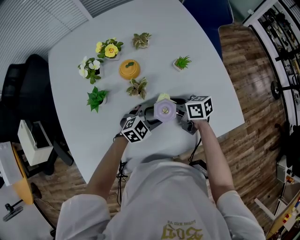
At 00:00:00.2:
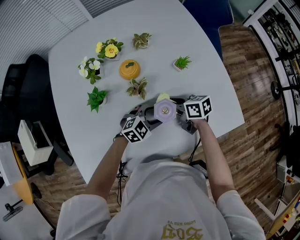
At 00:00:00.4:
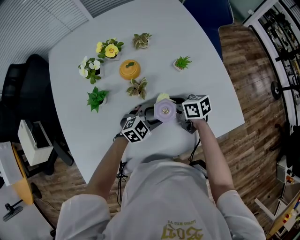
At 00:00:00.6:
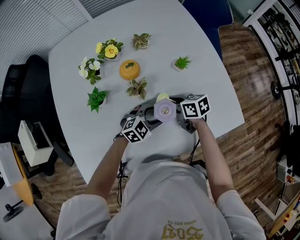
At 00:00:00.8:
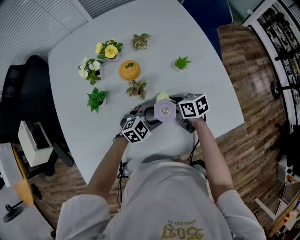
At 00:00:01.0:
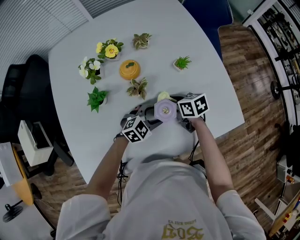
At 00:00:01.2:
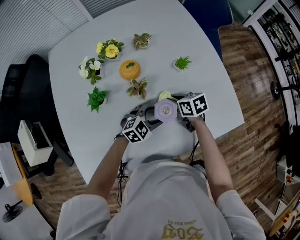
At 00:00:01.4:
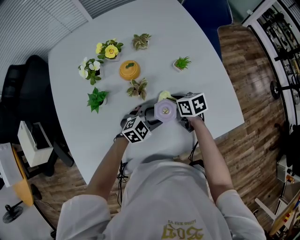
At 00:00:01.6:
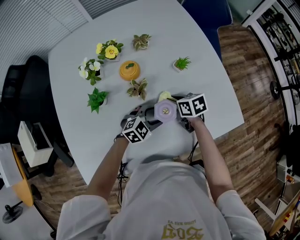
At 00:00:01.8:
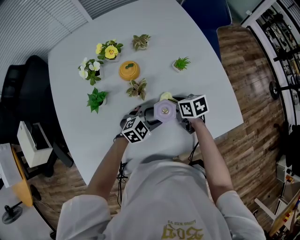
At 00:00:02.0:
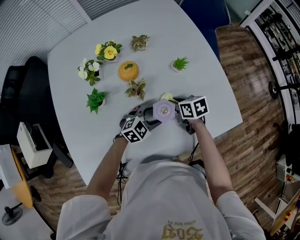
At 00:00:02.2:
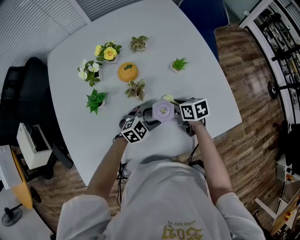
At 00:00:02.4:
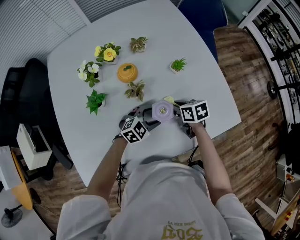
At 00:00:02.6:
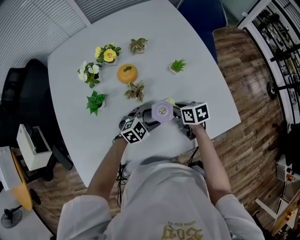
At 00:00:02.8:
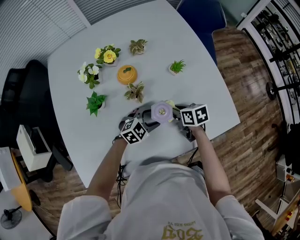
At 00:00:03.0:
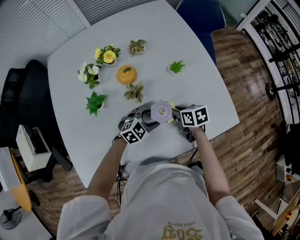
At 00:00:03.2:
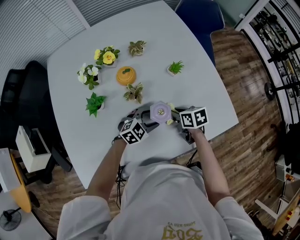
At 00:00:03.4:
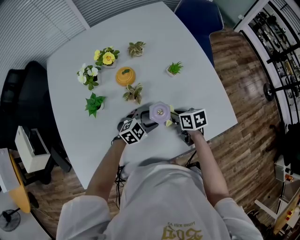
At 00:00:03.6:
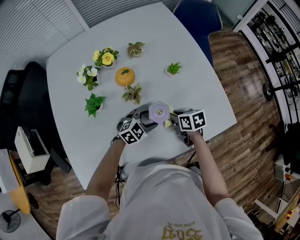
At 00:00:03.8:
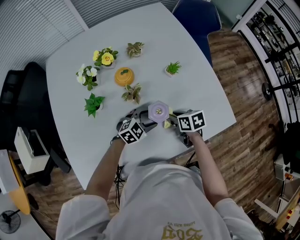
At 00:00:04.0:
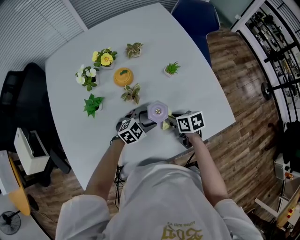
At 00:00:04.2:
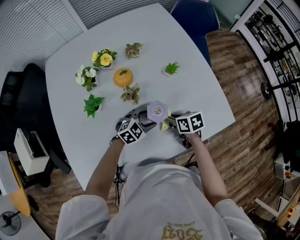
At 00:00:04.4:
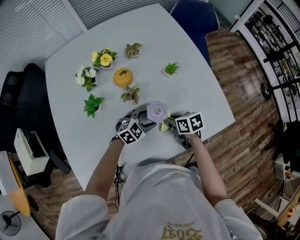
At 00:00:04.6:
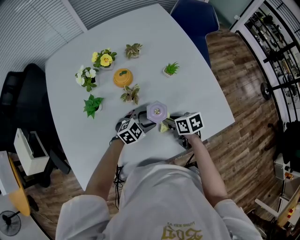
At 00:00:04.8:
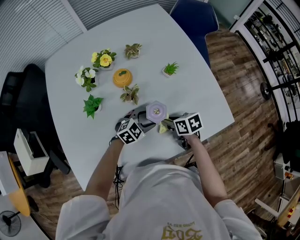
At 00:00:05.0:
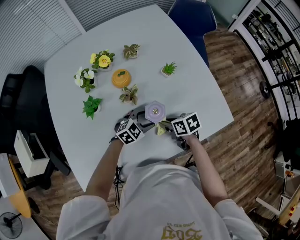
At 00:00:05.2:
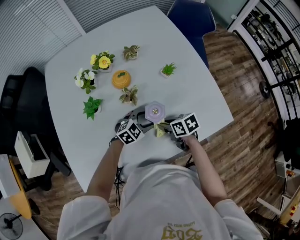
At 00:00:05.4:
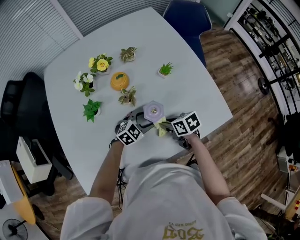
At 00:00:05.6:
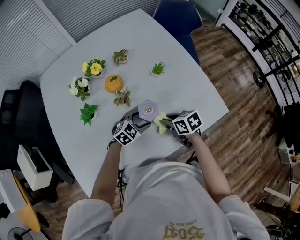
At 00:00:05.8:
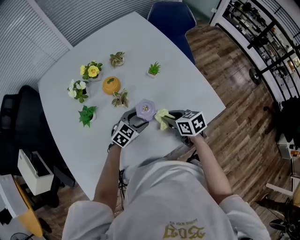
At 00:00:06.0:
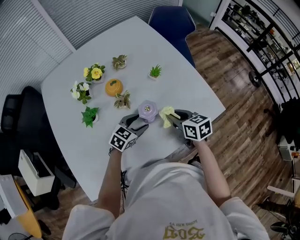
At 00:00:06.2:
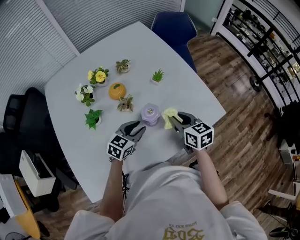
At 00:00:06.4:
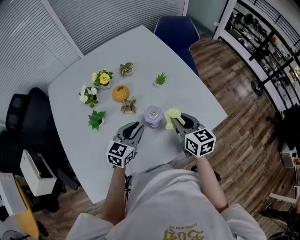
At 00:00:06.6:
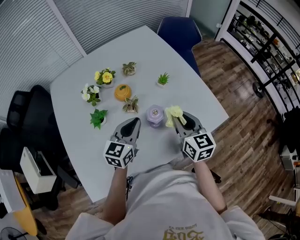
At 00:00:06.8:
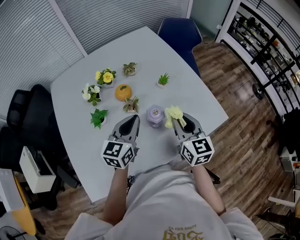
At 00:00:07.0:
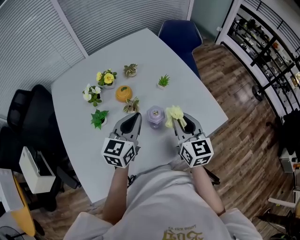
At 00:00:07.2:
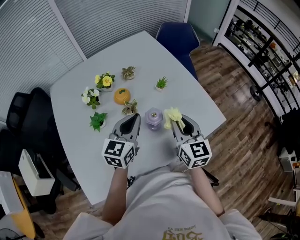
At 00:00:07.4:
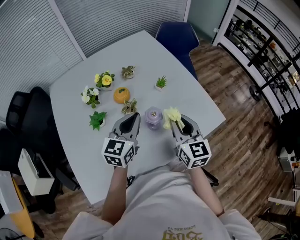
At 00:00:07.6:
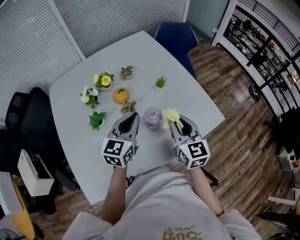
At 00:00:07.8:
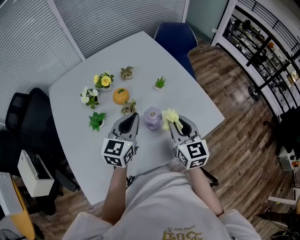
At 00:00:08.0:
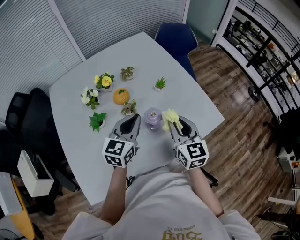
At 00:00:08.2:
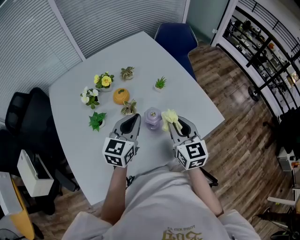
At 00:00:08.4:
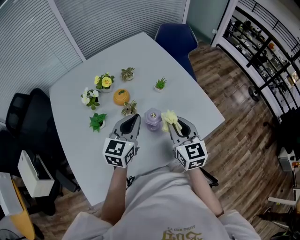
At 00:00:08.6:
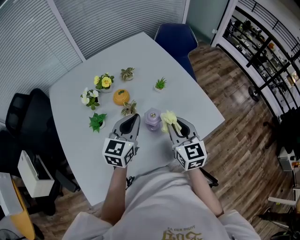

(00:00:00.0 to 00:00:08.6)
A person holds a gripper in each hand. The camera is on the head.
00:00:00.0 - 00:00:01.4: The right gripper swivels some 20 degrees.
00:00:01.4 - 00:00:02.8: There are only small adjustments of the grippers.
00:00:02.8 - 00:00:04.4: The grippers stay close to where they were, moving slightly.
00:00:04.4 - 00:00:05.8: The right gripper shifts about 5 cm upward.
00:00:05.8 - 00:00:07.2: Both grippers travel together upward, some 20 cm. The right gripper turns by about 50 degrees. Meanwhile the left gripper turns by some 40 degrees, and closes its fingers.
00:00:07.2 - 00:00:08.6: The grippers make only small movements.

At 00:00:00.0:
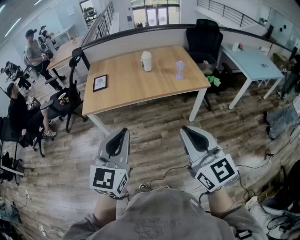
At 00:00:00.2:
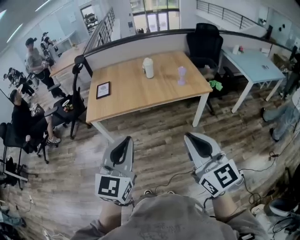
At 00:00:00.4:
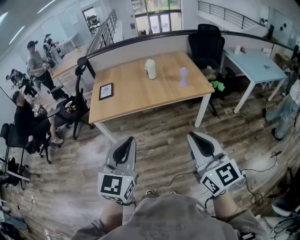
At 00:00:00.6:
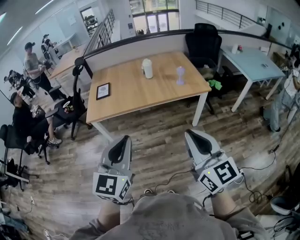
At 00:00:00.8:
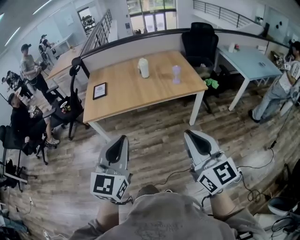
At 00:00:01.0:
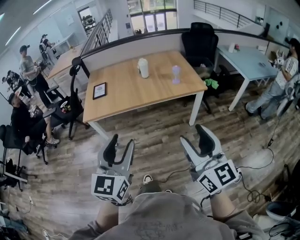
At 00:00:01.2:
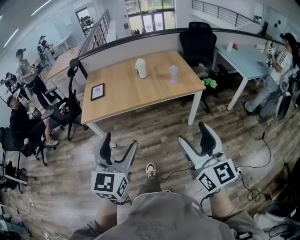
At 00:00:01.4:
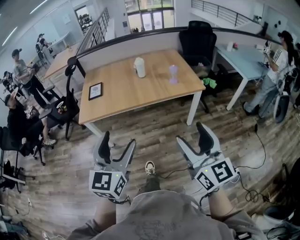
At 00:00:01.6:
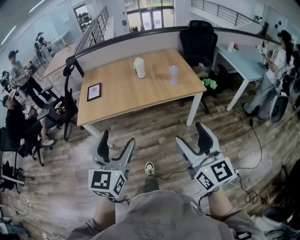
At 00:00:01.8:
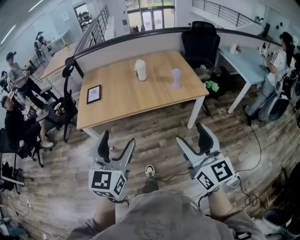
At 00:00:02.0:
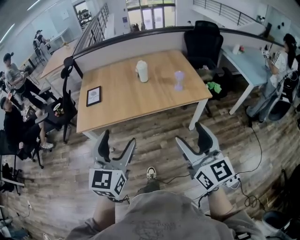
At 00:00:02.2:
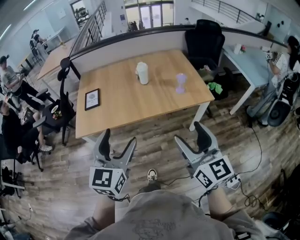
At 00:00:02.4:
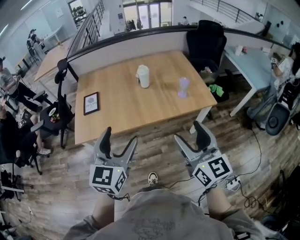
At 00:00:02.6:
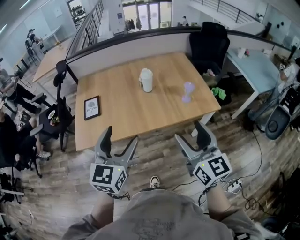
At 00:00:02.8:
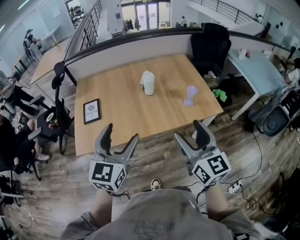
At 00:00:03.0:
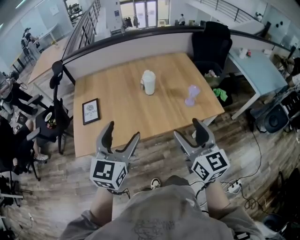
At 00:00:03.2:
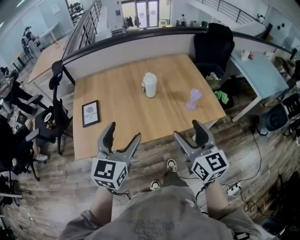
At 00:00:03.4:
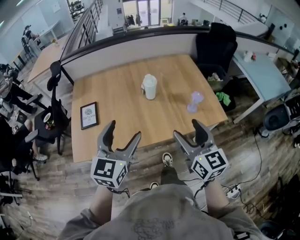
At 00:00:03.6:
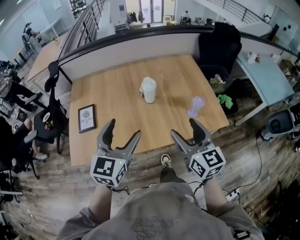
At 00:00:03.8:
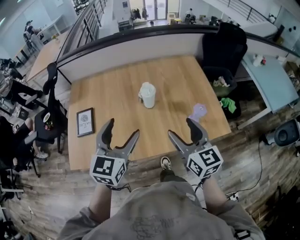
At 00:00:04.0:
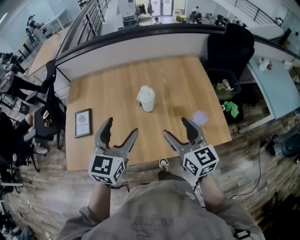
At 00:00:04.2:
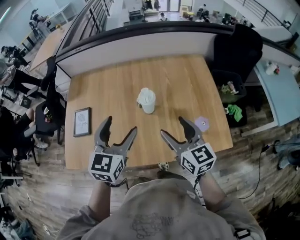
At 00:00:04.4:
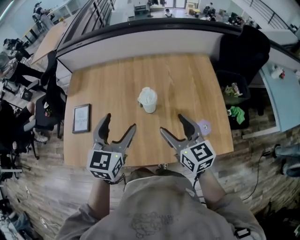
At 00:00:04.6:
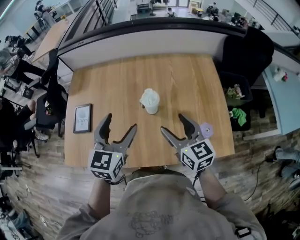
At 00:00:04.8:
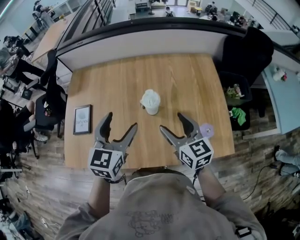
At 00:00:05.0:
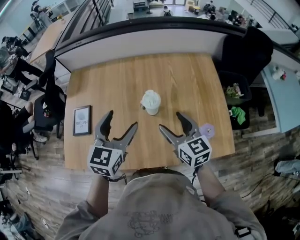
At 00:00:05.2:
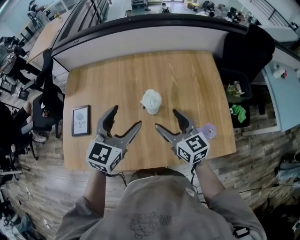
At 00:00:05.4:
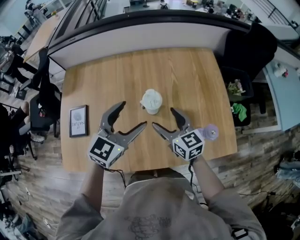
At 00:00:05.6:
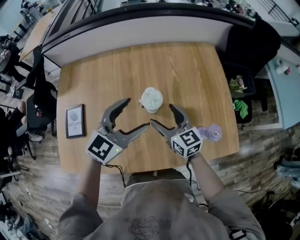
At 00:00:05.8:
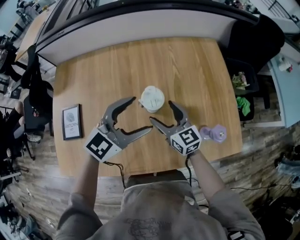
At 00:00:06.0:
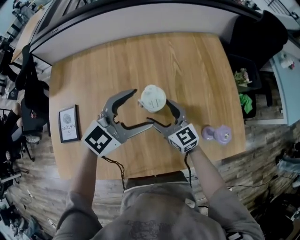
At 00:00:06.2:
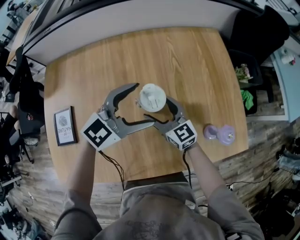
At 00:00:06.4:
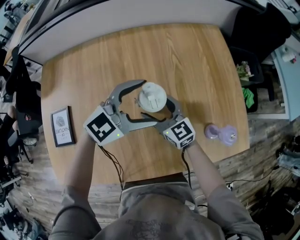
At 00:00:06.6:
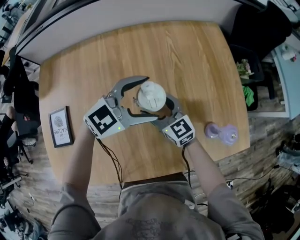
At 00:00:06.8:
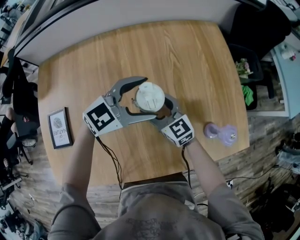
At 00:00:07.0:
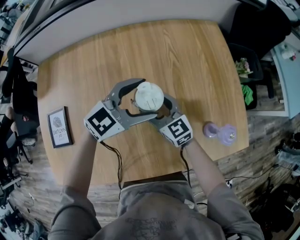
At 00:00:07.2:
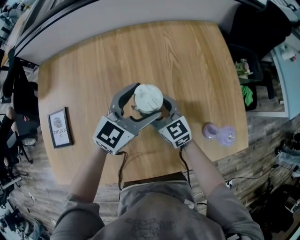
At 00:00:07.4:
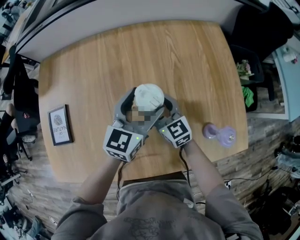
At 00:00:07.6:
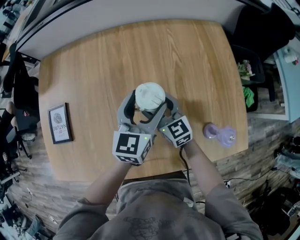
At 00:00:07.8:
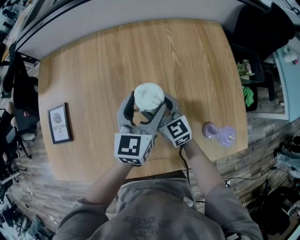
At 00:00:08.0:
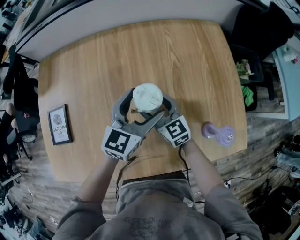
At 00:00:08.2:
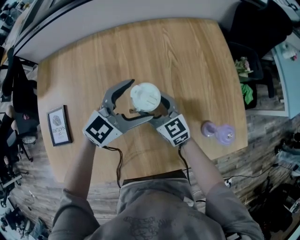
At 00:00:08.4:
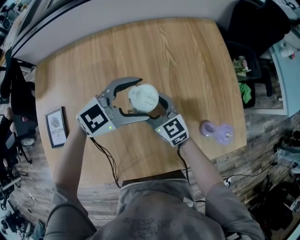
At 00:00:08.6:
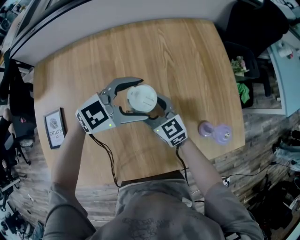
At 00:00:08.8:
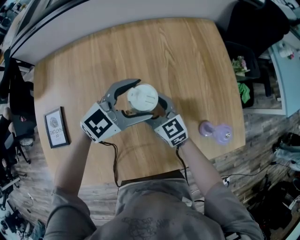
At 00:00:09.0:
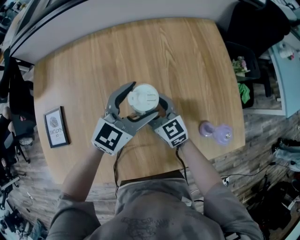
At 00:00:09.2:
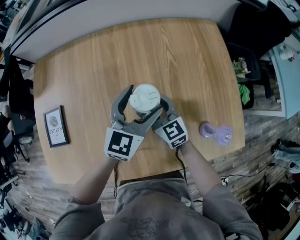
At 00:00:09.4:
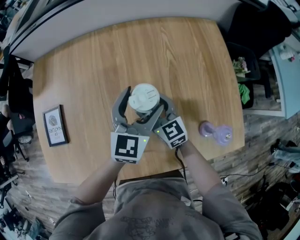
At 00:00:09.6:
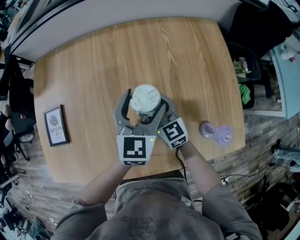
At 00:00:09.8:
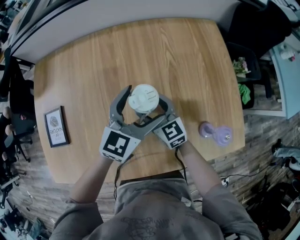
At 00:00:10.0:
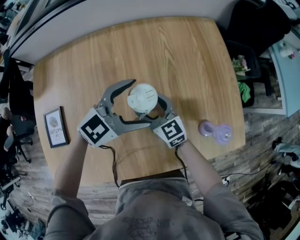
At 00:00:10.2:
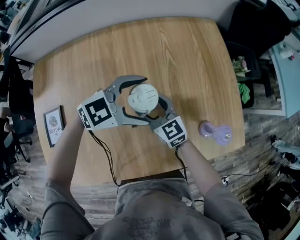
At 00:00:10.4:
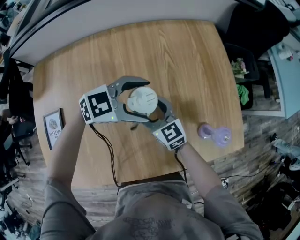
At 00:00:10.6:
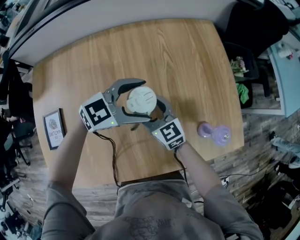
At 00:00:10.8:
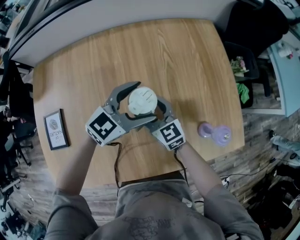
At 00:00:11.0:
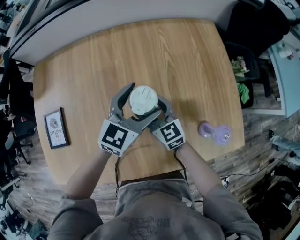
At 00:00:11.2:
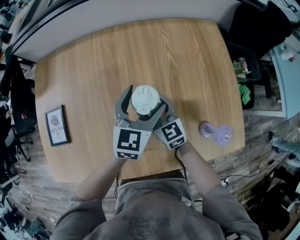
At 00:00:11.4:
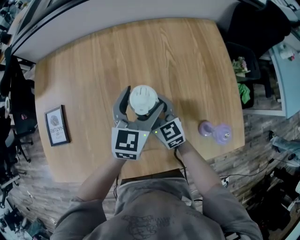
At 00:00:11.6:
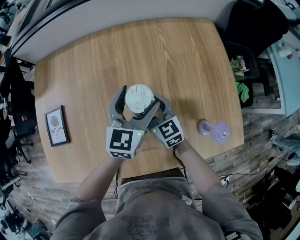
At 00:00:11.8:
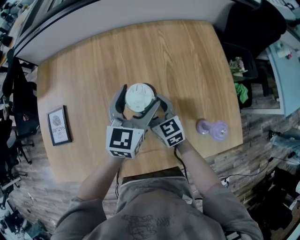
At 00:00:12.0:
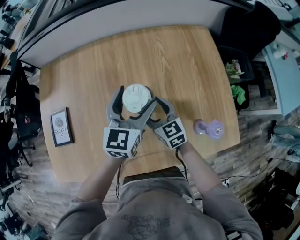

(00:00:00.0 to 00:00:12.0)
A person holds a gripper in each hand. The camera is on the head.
00:00:00.0 - 00:00:01.6: The left gripper heads forward, covering approximately 5 cm, and opens up. Meanwhile the right gripper goes some 5 cm to the right, and opens its fingers.
00:00:01.6 - 00:00:03.0: Both grippers travel together forward, about 35 cm.
00:00:03.0 - 00:00:04.4: The two grippers go roughly 30 cm forward. The right gripper swivels roughly 20 degrees.
00:00:04.4 - 00:00:06.0: The left gripper travels forward and downward by roughly 15 cm, and turns by some 40 degrees. The right gripper moves downward, forward and to the left, roughly 25 cm.
00:00:06.0 - 00:00:07.6: The right gripper ends up roughly 5 cm from where it was; the left gripper is displaced downward and forward by some 10 cm, and swivels approximately 40 degrees.
00:00:07.6 - 00:00:09.0: The left gripper turns by roughly 30 degrees.
00:00:09.0 - 00:00:10.4: The left gripper rotates approximately 40 degrees.
00:00:10.4 - 00:00:12.0: The left gripper goes some 5 cm upward, and turns by roughly 70 degrees.

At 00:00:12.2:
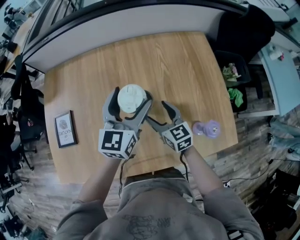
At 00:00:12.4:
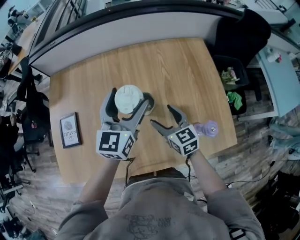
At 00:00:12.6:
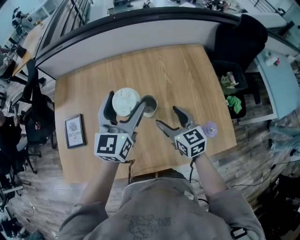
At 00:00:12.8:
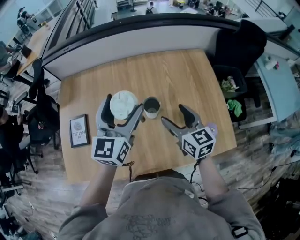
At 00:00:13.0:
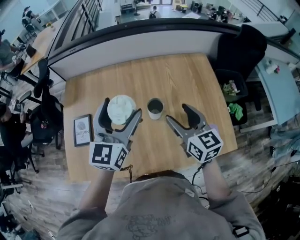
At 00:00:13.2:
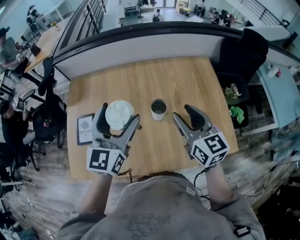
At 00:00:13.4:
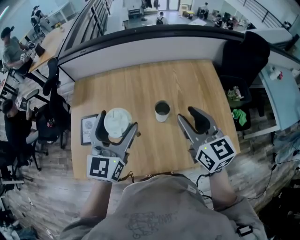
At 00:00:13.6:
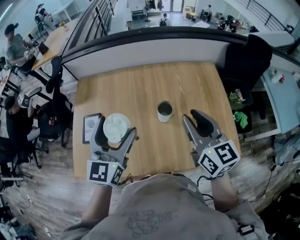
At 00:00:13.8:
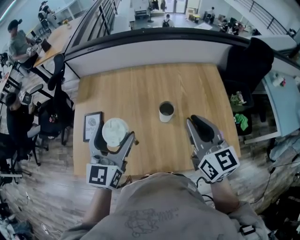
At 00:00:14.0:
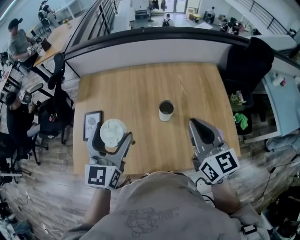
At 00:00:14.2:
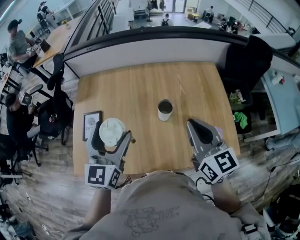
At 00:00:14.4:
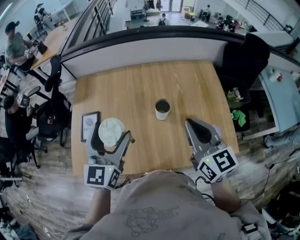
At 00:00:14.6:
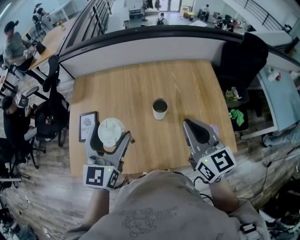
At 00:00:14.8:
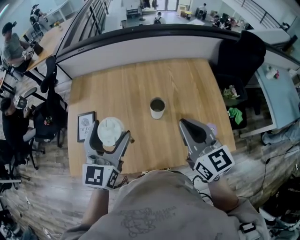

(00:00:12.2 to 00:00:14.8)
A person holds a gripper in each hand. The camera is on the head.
00:00:12.2 - 00:00:13.4: The right gripper shifts about 25 cm upward, and closes its fingers. Meanwhile the left gripper heads upward, to the left and backward, covering some 25 cm.
00:00:13.4 - 00:00:14.8: The right gripper moves backward, about 5 cm, and closes its fingers.
